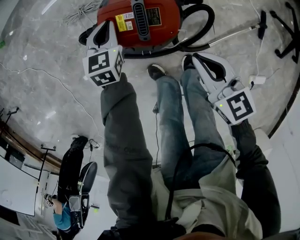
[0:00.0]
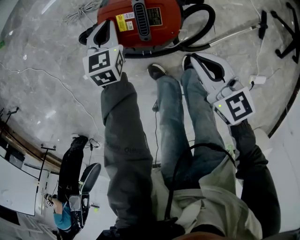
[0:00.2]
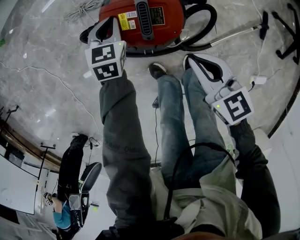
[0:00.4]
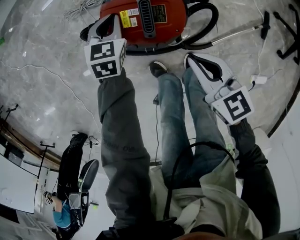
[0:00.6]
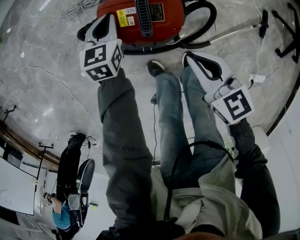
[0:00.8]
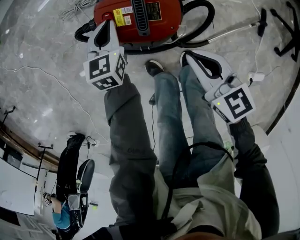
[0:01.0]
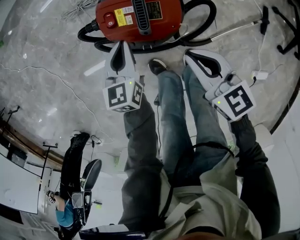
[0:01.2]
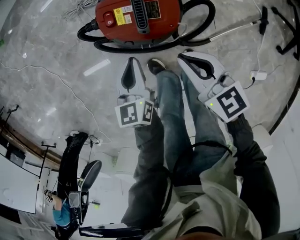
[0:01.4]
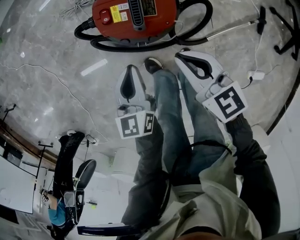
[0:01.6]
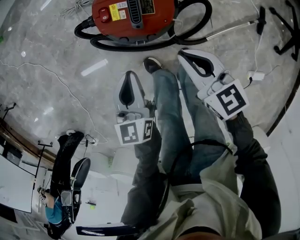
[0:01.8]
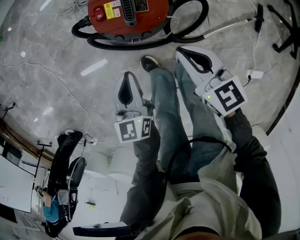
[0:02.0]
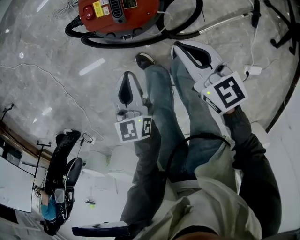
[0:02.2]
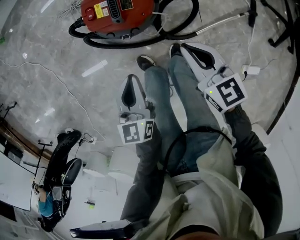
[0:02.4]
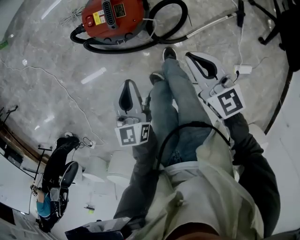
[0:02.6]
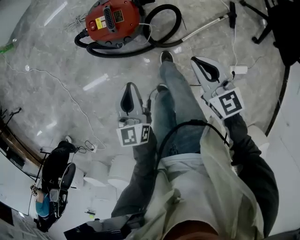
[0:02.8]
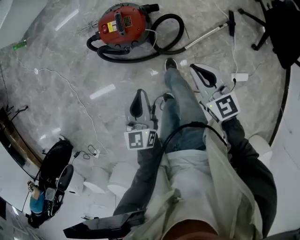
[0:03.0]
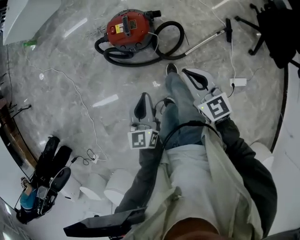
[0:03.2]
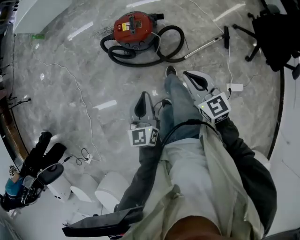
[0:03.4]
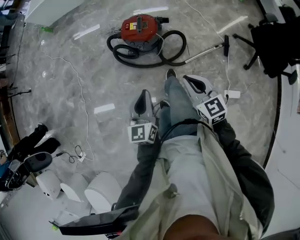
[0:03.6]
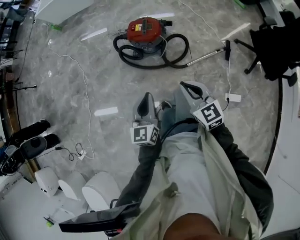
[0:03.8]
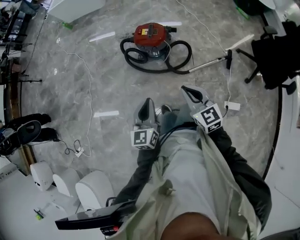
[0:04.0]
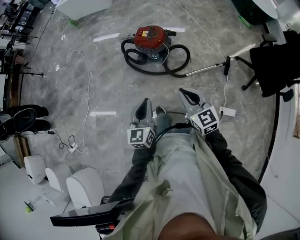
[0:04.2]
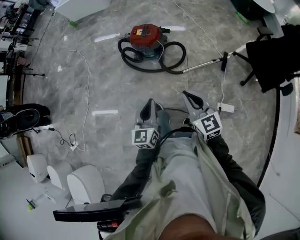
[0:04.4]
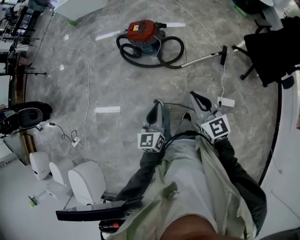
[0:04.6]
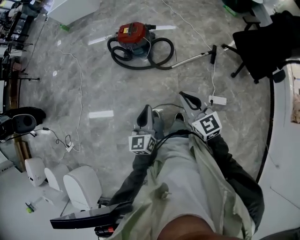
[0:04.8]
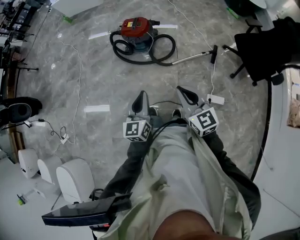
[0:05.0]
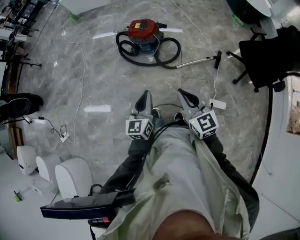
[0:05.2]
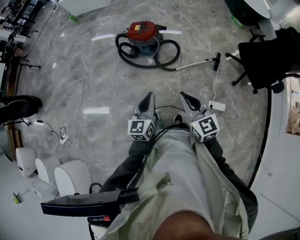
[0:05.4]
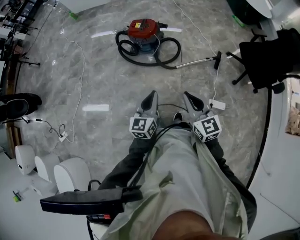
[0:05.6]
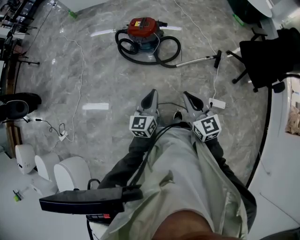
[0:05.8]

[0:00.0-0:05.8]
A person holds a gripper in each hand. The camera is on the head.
0.0 to 1.4 s: The left gripper goes roughly 15 cm backward, and turns by roughly 20 degrees.
1.4 to 2.8 s: The left gripper is displaced upward and backward by roughly 25 cm. The right gripper shifts about 25 cm to the right, upward and backward.
2.8 to 4.4 s: Both grippers move backward and upward, some 40 cm. The right gripper turns by approximately 20 degrees.
4.4 to 5.8 s: The left gripper heads backward, covering about 5 cm. Meanwhile the right gripper travels backward by about 10 cm.

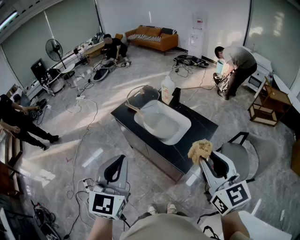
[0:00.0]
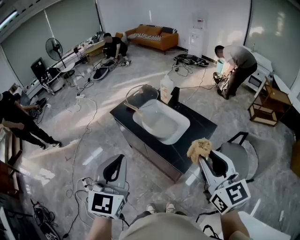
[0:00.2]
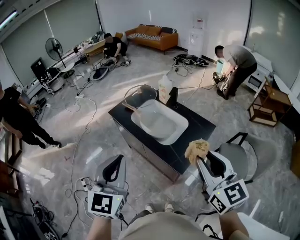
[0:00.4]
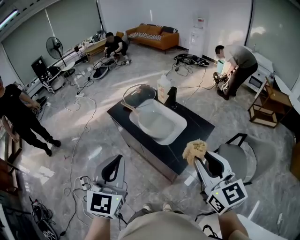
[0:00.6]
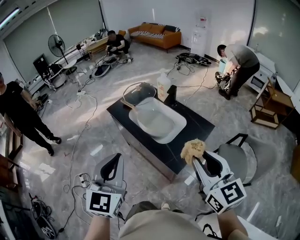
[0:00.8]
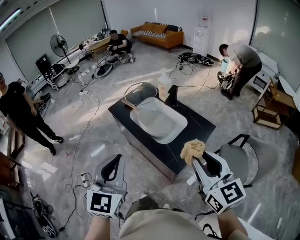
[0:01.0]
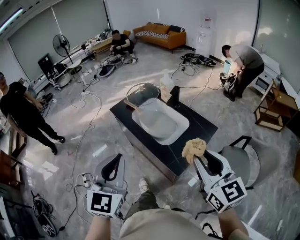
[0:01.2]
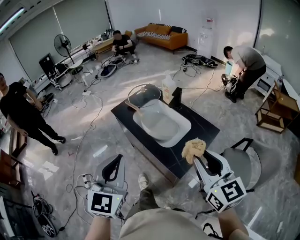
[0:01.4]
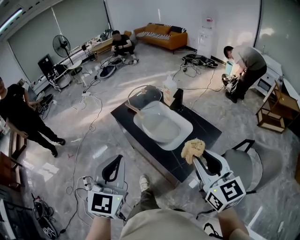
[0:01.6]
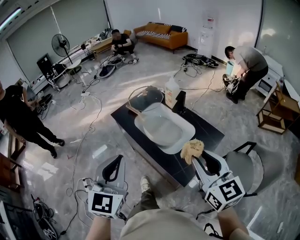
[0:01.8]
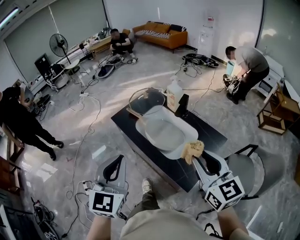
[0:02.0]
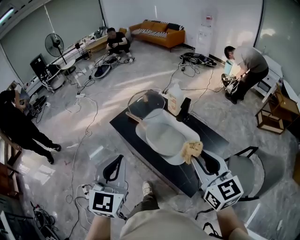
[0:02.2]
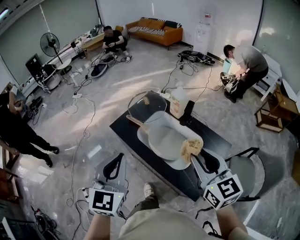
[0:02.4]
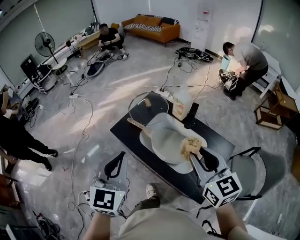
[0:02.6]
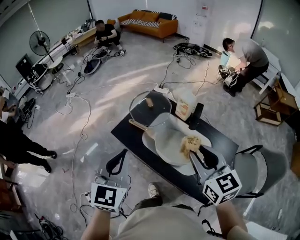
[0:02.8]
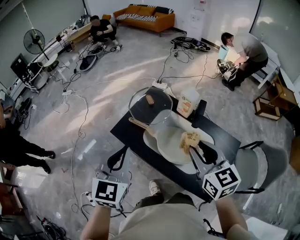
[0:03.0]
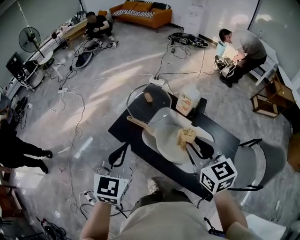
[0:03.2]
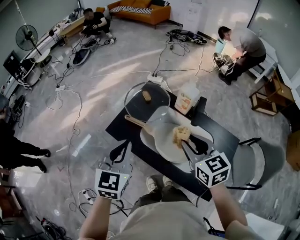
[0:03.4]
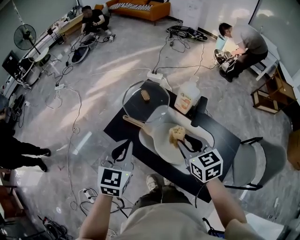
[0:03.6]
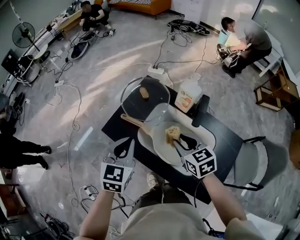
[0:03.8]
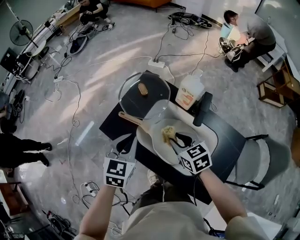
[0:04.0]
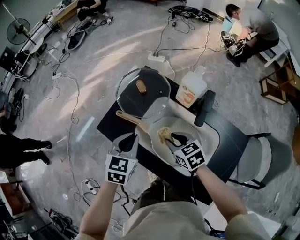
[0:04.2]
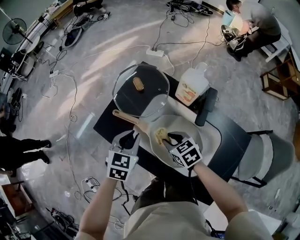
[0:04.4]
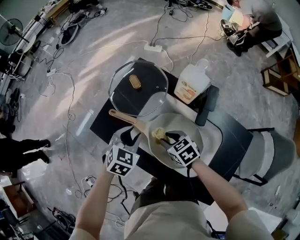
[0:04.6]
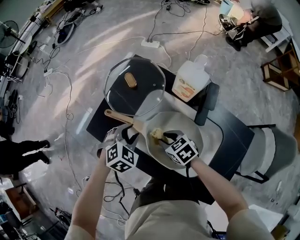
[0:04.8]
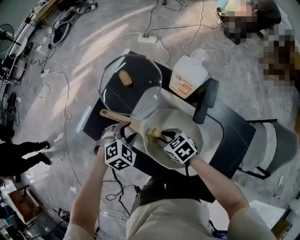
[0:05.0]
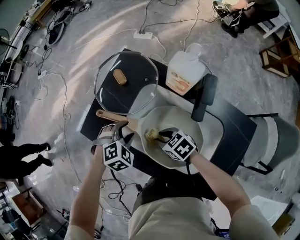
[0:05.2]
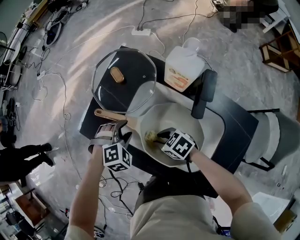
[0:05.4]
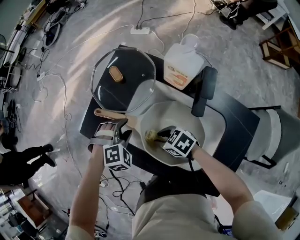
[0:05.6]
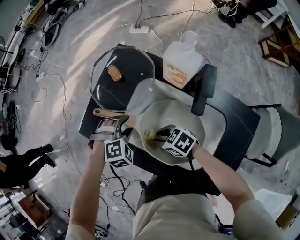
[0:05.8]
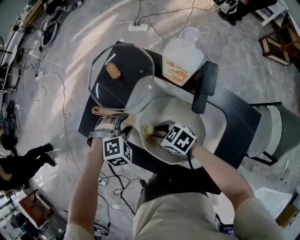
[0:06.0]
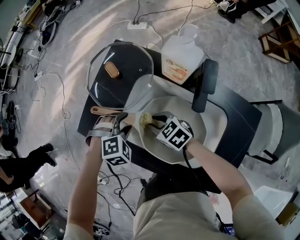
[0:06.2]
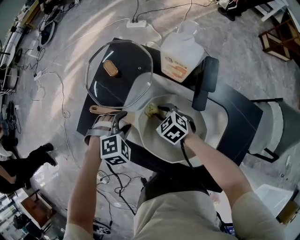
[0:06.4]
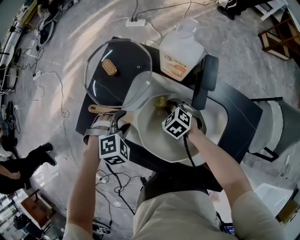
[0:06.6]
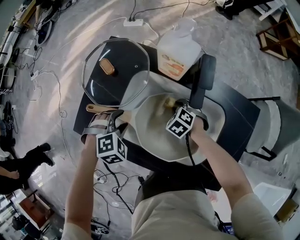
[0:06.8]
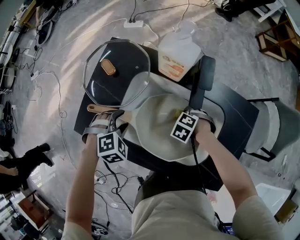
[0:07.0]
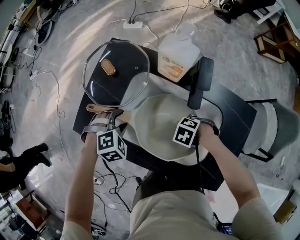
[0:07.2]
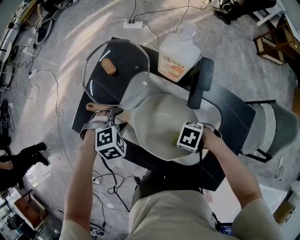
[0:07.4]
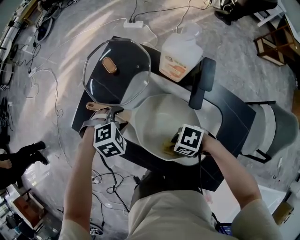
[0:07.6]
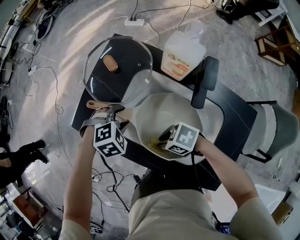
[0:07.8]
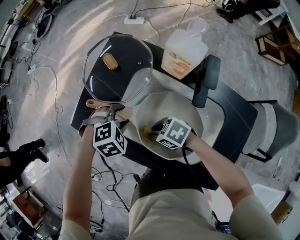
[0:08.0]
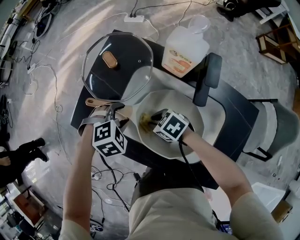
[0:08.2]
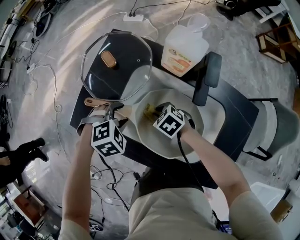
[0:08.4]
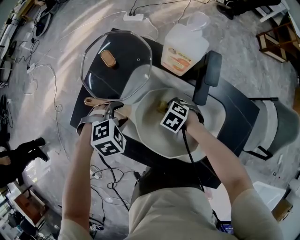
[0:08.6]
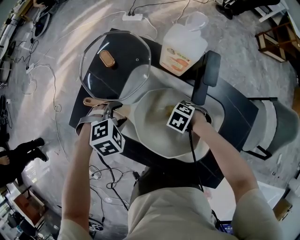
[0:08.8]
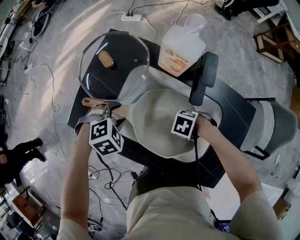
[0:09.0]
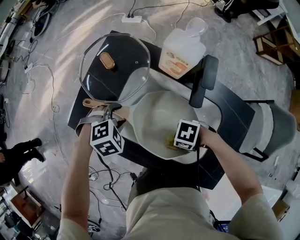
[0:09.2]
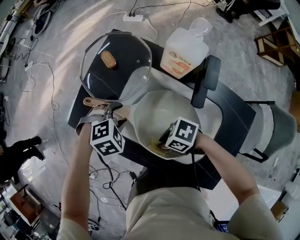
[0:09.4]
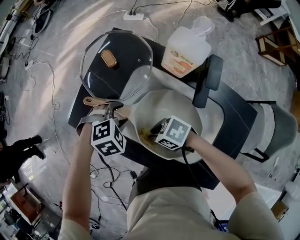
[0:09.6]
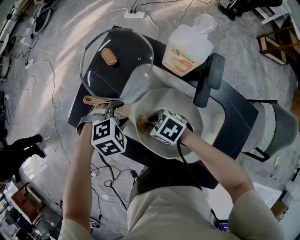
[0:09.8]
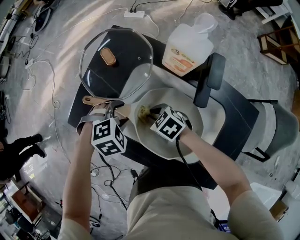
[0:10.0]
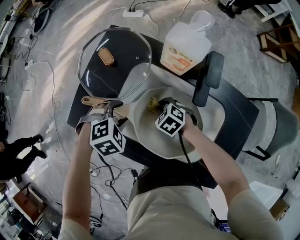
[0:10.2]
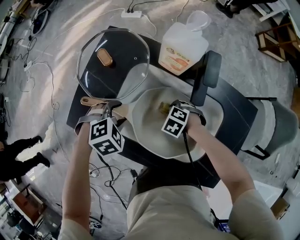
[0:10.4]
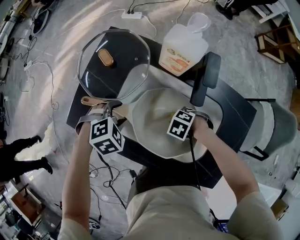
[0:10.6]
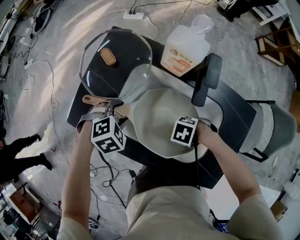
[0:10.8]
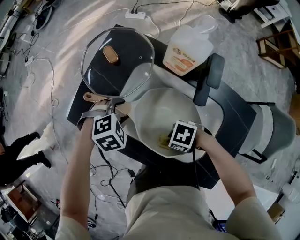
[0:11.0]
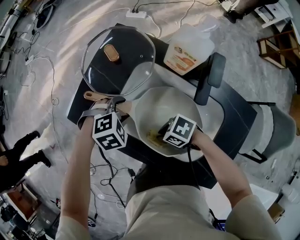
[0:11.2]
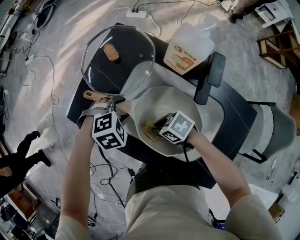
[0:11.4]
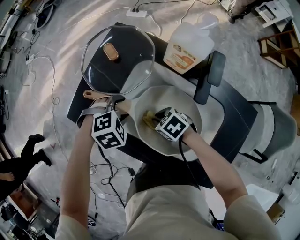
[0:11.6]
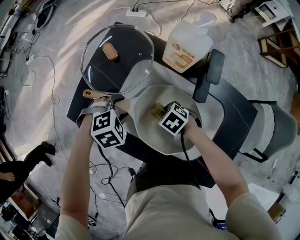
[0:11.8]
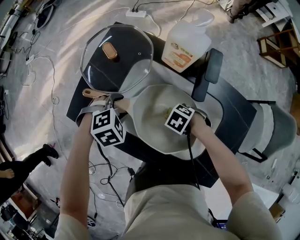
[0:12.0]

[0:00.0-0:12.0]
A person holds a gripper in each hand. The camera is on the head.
0.0 to 1.6 s: The left gripper ends up roughly 5 cm from where it was. The right gripper shifts approximately 5 cm forward.
1.6 to 3.0 s: The left gripper is displaced forward by about 30 cm. The right gripper goes about 30 cm forward and to the left.
3.0 to 4.4 s: The right gripper travels downward by about 30 cm, and changes its angle by approximately 40 degrees; the left gripper shifts approximately 25 cm downward and forward, and swivels approximately 30 degrees.
4.4 to 6.0 s: The right gripper moves downward, roughly 10 cm, while the left gripper travels downward by some 15 cm, rotates around the line of its fingers by some 60 degrees, clockwise from behind, and opens up.
6.0 to 7.6 s: The right gripper travels downward and back again, roughly 10 cm each way, and changes its angle by about 30 degrees.
7.6 to 9.0 s: The right gripper changes its angle by about 20 degrees.
9.0 to 10.4 s: The right gripper reaches approximately 10 cm upward, then returns, and rotates approximately 20 degrees.
10.4 to 12.0 s: The right gripper moves about 10 cm upward and comes back.

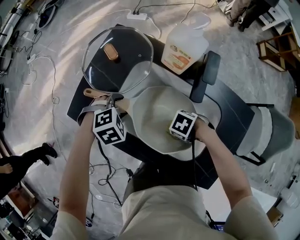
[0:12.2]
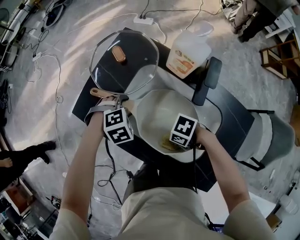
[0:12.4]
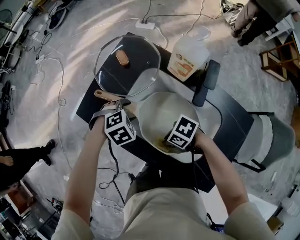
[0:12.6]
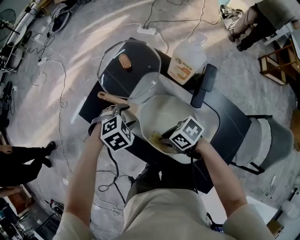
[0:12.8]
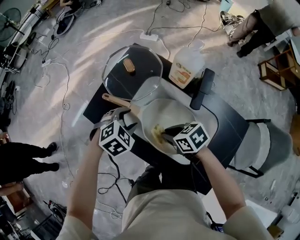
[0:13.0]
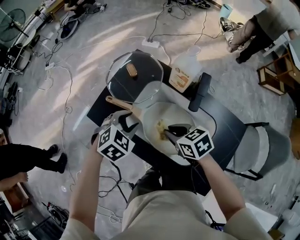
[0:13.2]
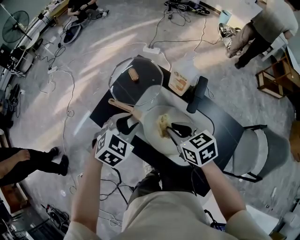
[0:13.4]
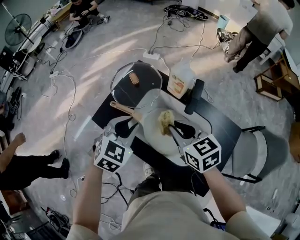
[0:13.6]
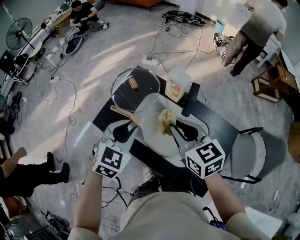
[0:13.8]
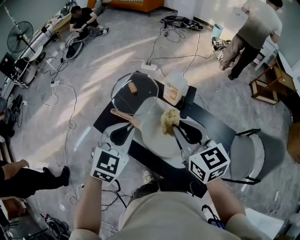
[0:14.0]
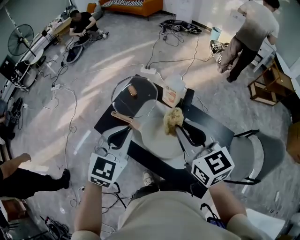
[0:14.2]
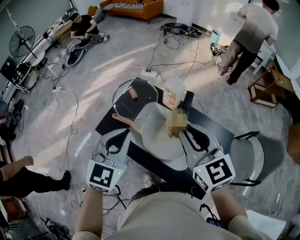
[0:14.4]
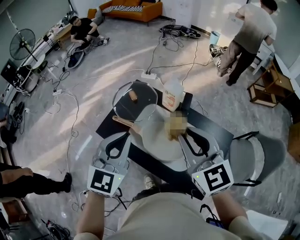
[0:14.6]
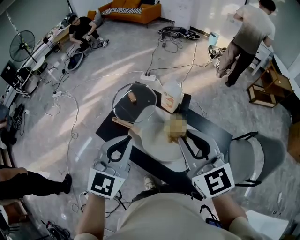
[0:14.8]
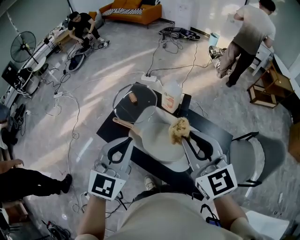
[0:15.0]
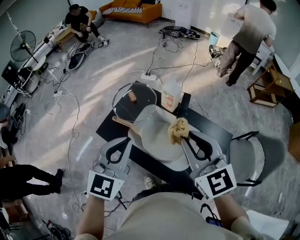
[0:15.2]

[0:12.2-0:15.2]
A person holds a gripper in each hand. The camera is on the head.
12.2 to 13.8 s: Both grippers travel together upward, some 30 cm. The right gripper angles its fingers upward, by roughly 40 degrees. Meanwhile the left gripper points its fingers roughly 40 degrees further upward, and closes its fingers.
13.8 to 15.2 s: The two grippers go some 15 cm upward and backward. The left gripper turns by about 20 degrees; the right gripper turns by some 20 degrees.

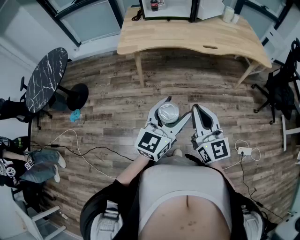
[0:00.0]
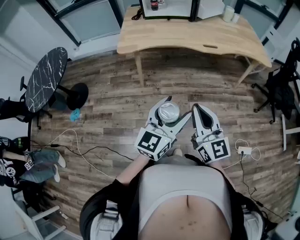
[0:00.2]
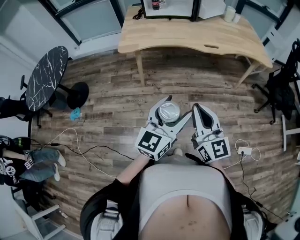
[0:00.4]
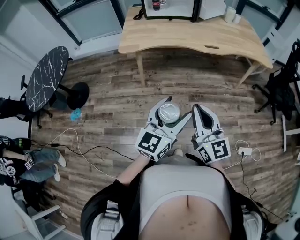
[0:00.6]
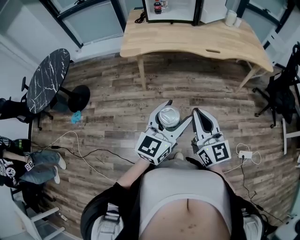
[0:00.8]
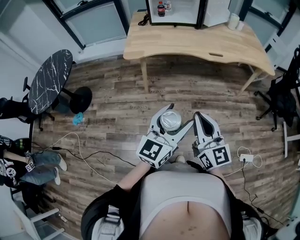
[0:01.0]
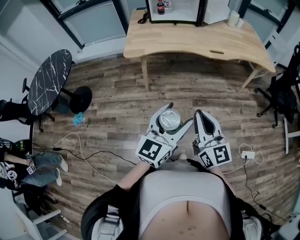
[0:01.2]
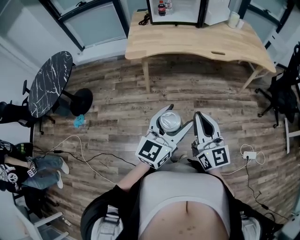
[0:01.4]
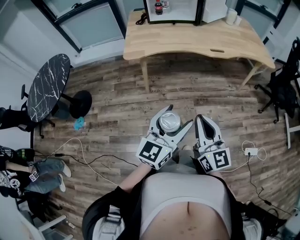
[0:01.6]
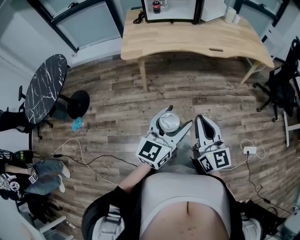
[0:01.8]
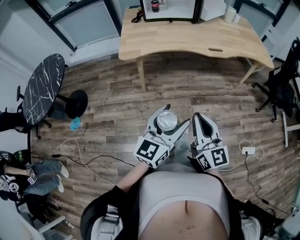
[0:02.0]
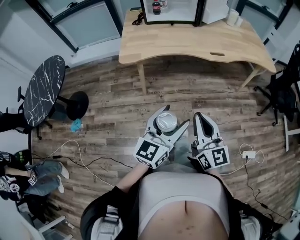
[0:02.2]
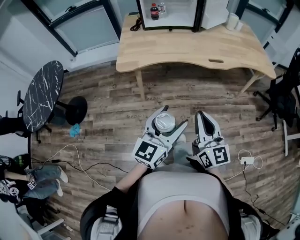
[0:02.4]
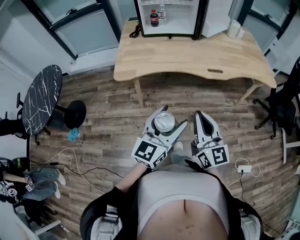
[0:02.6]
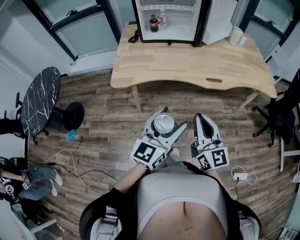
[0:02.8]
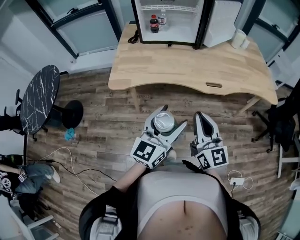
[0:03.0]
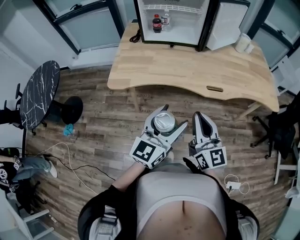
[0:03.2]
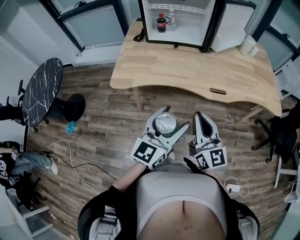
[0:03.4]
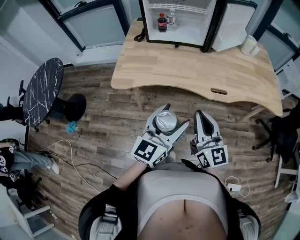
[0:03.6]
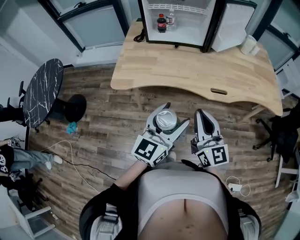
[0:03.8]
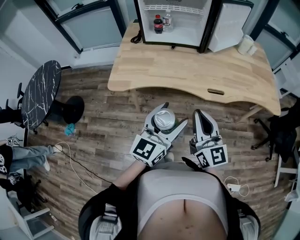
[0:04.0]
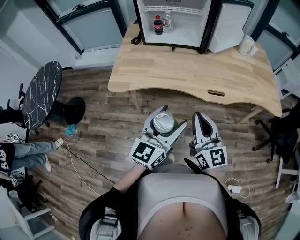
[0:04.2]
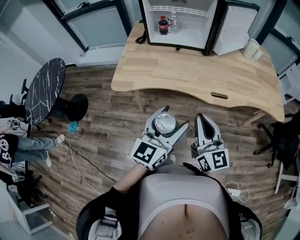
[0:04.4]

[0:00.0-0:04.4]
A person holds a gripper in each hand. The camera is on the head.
0.0 to 1.4 s: The grippers both shift to the left by approximately 5 cm.
1.4 to 3.0 s: The two grippers go some 25 cm forward.
3.0 to 4.4 s: The grippers both shift forward by about 5 cm.
